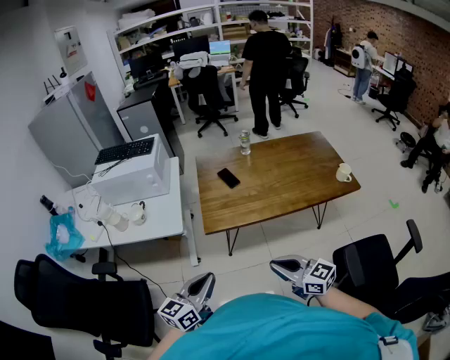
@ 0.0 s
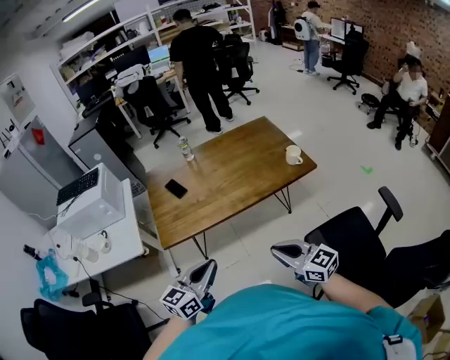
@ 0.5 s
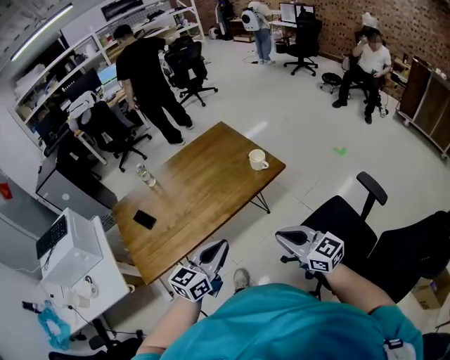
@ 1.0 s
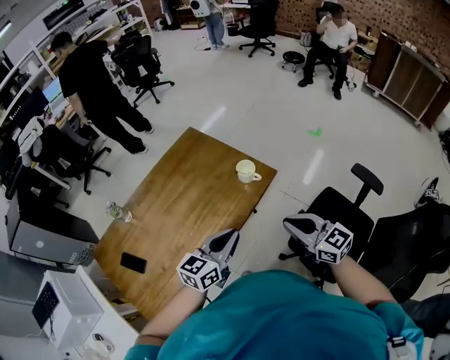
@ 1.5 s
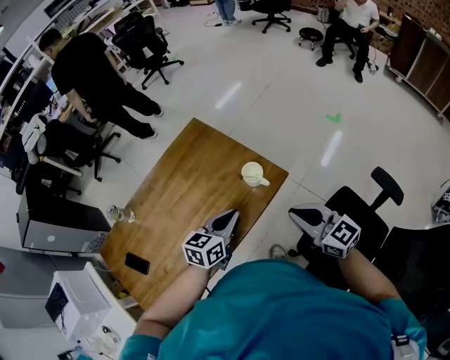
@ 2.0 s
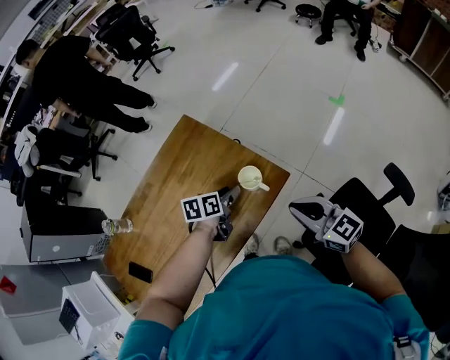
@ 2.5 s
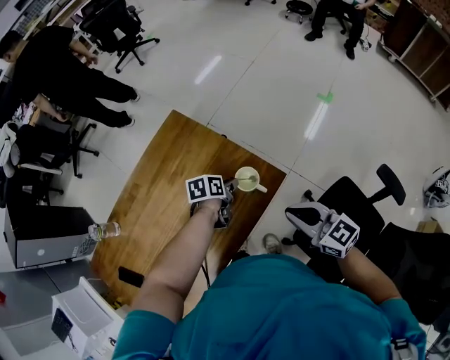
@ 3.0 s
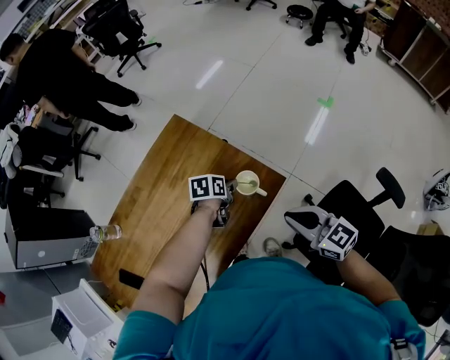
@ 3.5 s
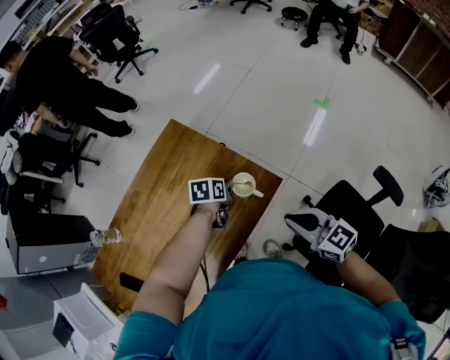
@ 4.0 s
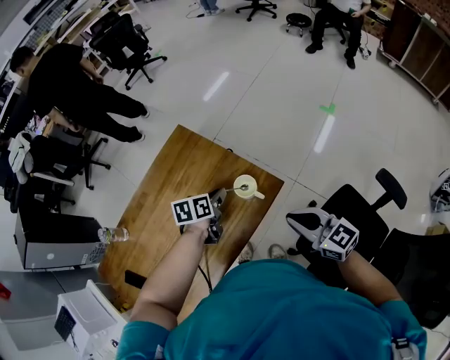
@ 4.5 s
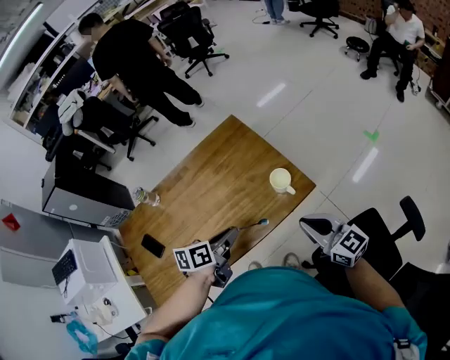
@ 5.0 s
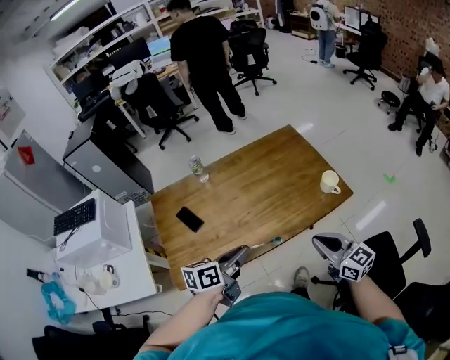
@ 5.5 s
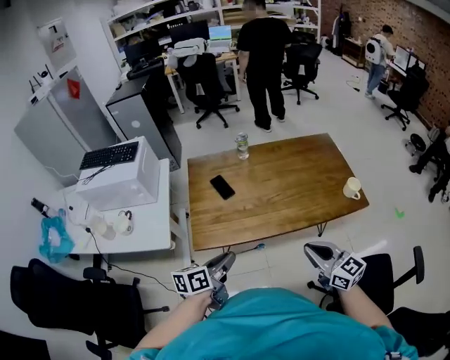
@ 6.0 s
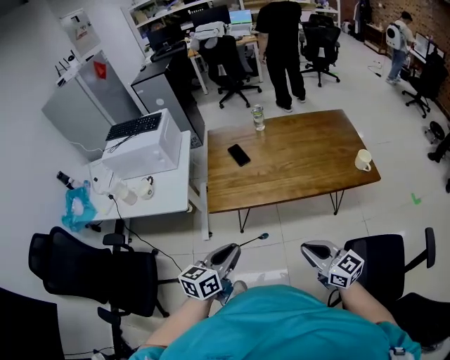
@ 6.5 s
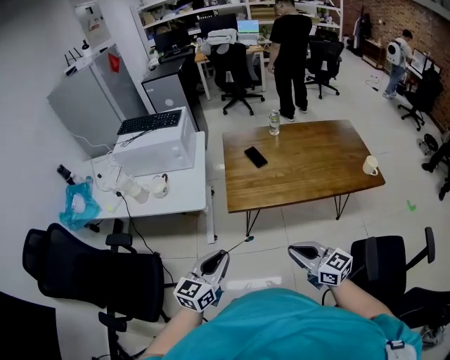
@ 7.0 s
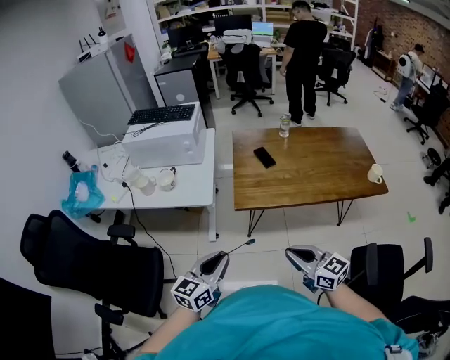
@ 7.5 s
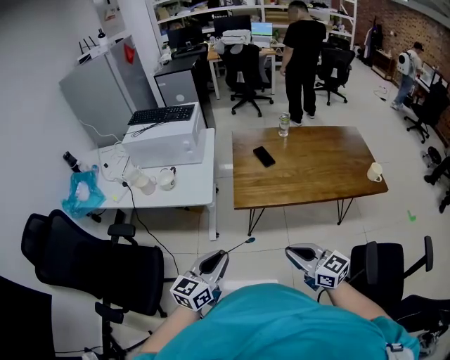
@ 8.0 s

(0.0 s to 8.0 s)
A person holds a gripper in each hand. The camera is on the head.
0.0 s - 2.0 s: The two grippers travel together, about 70 cm. The left gripper turns by some 40 degrees, while the right gripper changes its angle by about 40 degrees.
2.0 s - 4.0 s: The left gripper heads forward and downward, covering roughly 30 cm, tips its fingers downward by roughly 30 degrees, and opens and closes again. Meanwhile the right gripper heads forward, covering approximately 10 cm.
4.0 s - 6.0 s: The two grippers travel together, about 60 cm. The left gripper points its fingers approximately 40 degrees further upward. Meanwhile the right gripper changes its angle by approximately 30 degrees.
6.0 s - 8.0 s: The right gripper heads to the left and backward, covering approximately 30 cm; the left gripper heads backward and to the left, covering some 30 cm, and rotates about 40 degrees.

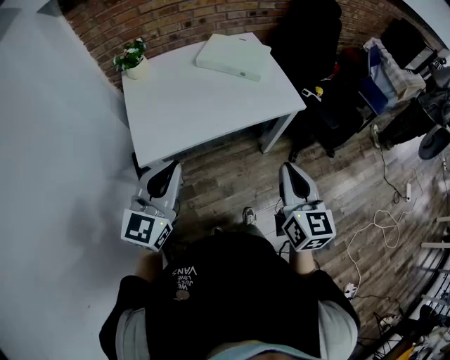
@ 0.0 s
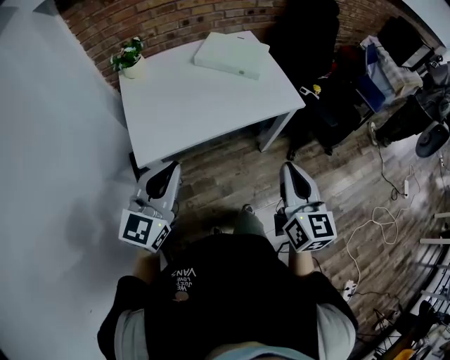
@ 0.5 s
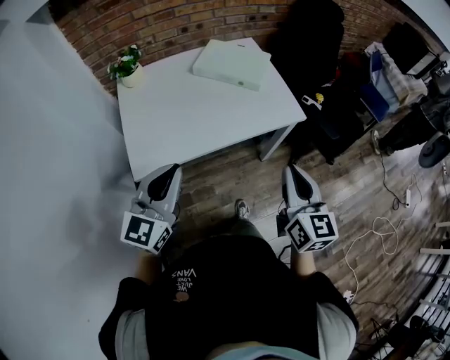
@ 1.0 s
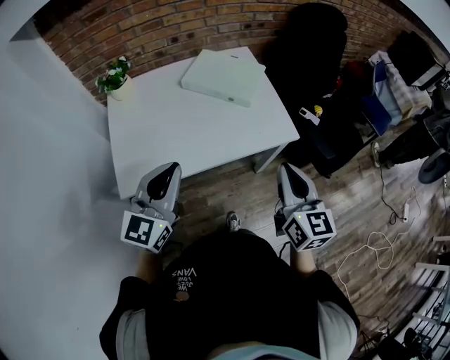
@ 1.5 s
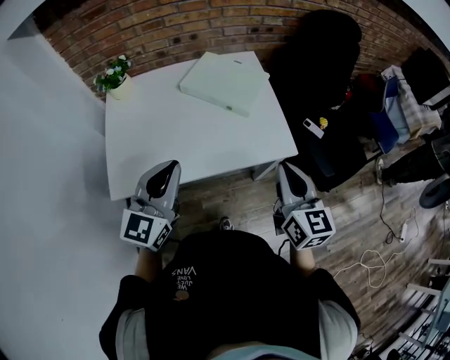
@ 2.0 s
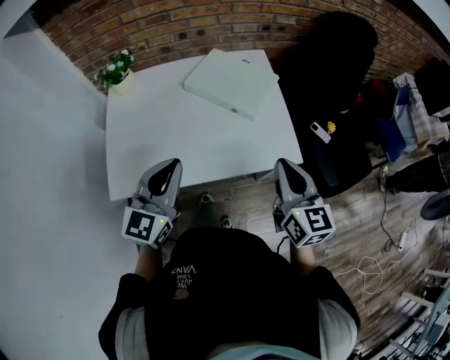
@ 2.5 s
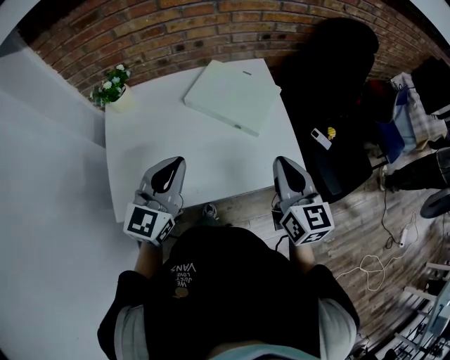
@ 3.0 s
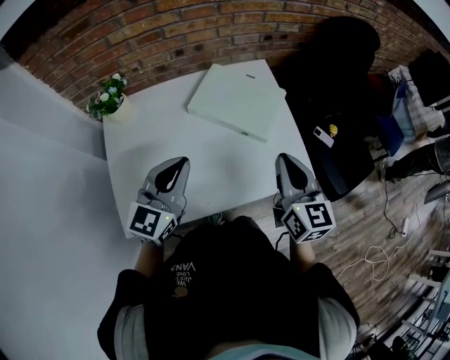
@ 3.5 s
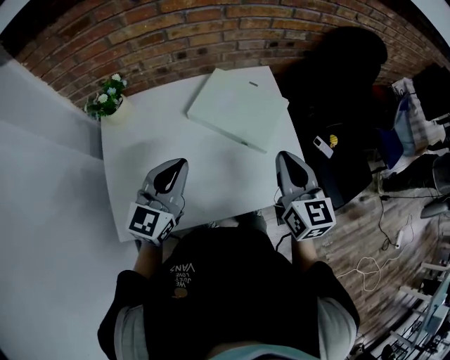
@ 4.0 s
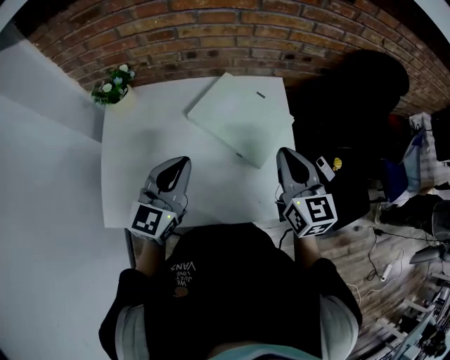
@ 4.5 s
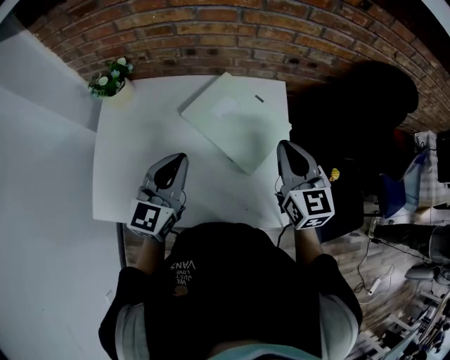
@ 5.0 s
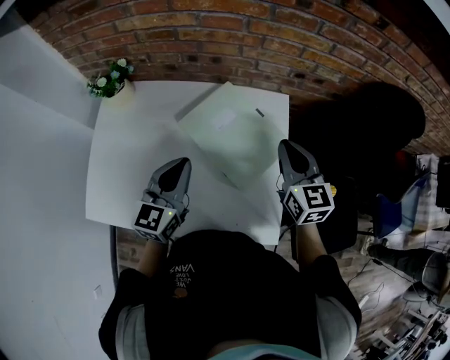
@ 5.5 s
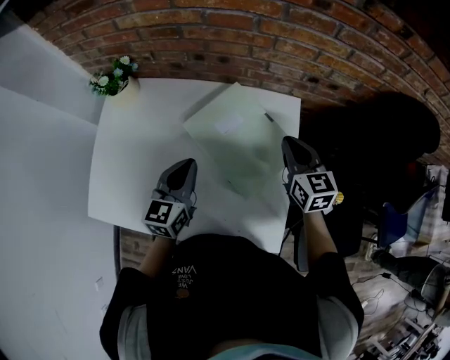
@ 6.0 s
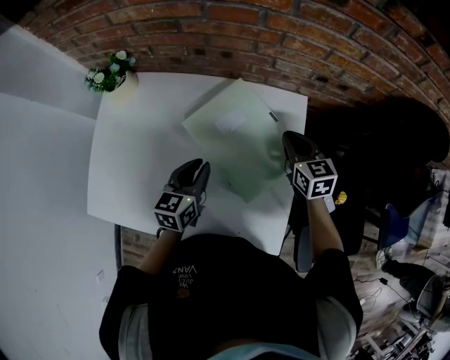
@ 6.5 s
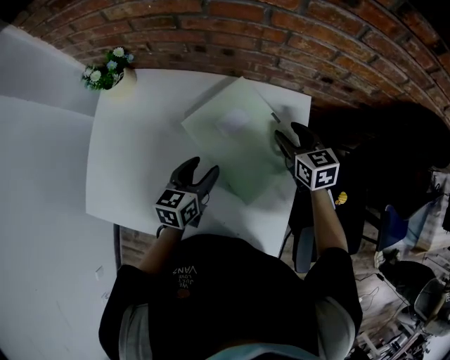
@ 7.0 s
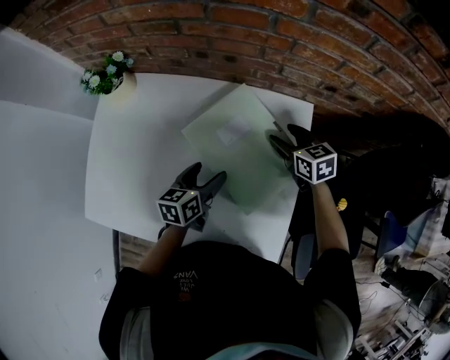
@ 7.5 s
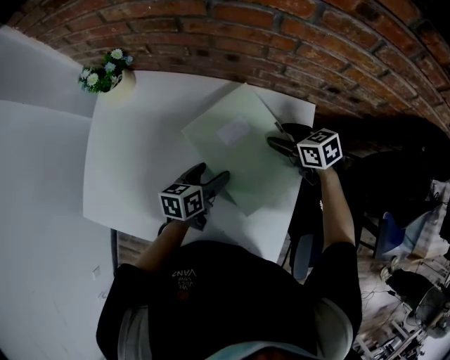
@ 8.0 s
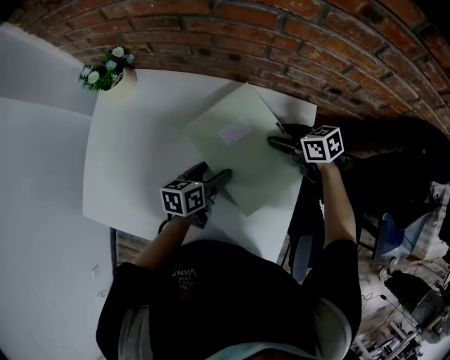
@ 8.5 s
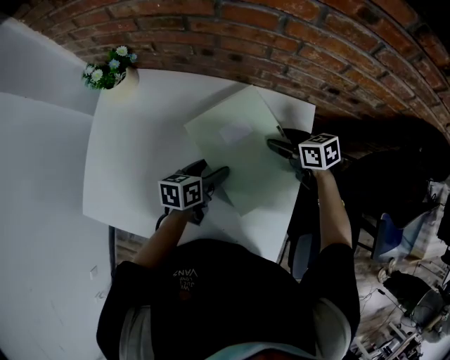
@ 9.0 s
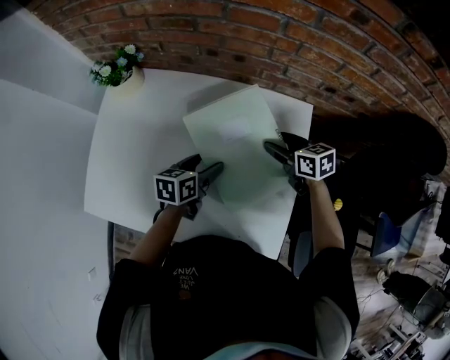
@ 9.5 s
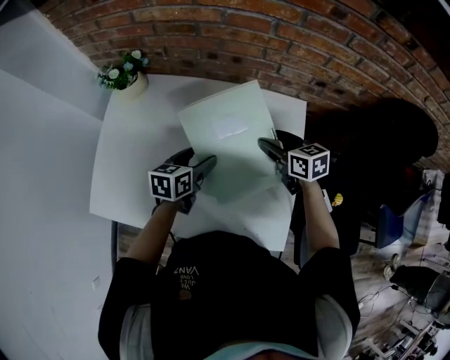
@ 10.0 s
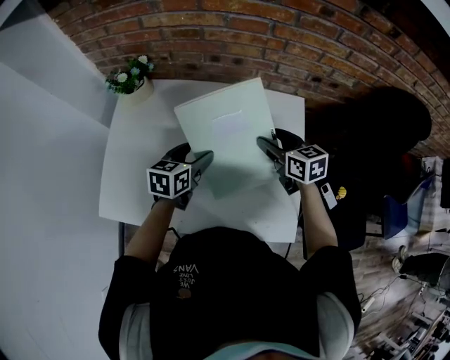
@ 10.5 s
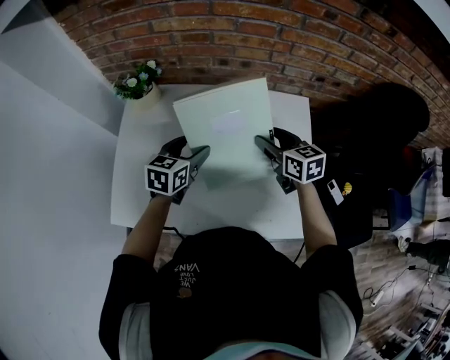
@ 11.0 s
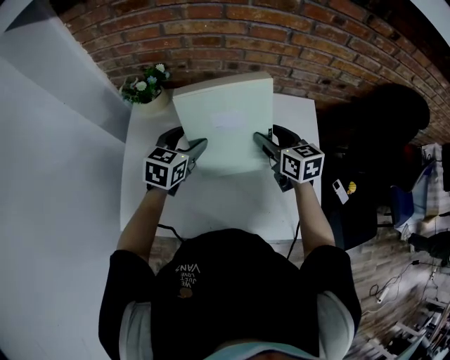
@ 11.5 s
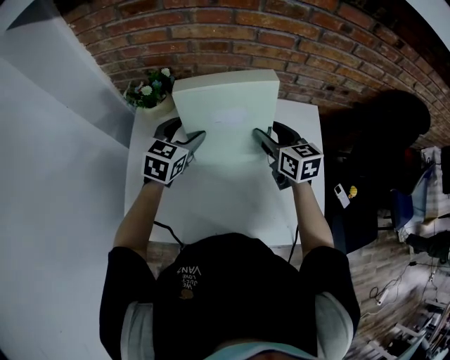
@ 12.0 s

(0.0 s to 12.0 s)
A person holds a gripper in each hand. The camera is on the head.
0.0 s - 2.0 s: The right gripper heads forward, covering some 20 cm; the left gripper shifts some 20 cm forward and to the right.
2.0 s - 4.0 s: The grippers both shift forward by about 20 cm.
4.0 s - 6.0 s: The right gripper shifts by some 25 cm, and changes its angle by about 30 degrees; the left gripper ends up approximately 15 cm from where it was, and swivels some 30 degrees.
6.0 s - 8.0 s: The left gripper moves downward, about 15 cm, rotates some 40 degrees, and opens up. The right gripper goes about 15 cm downward and forward, changes its angle by some 40 degrees, and opens up.
8.0 s - 10.0 s: The left gripper heads upward and to the left, covering about 10 cm; the right gripper travels upward and backward by approximately 10 cm.
10.0 s - 12.0 s: The right gripper heads to the left and upward, covering some 15 cm, and swivels some 20 degrees, while the left gripper moves to the left, upward and forward, roughly 20 cm, and changes its angle by roughly 40 degrees.

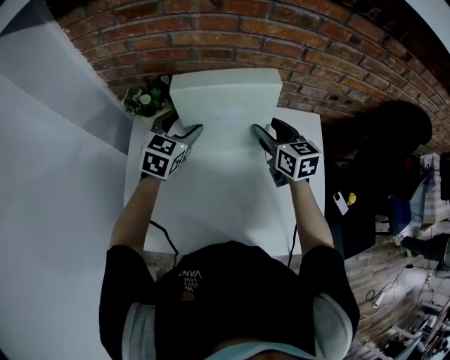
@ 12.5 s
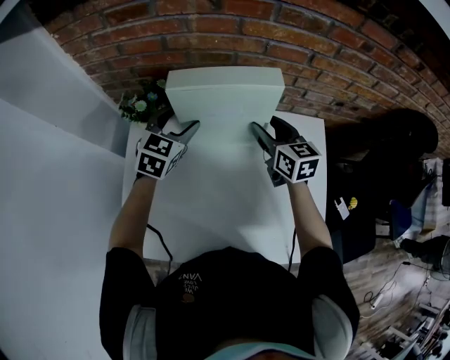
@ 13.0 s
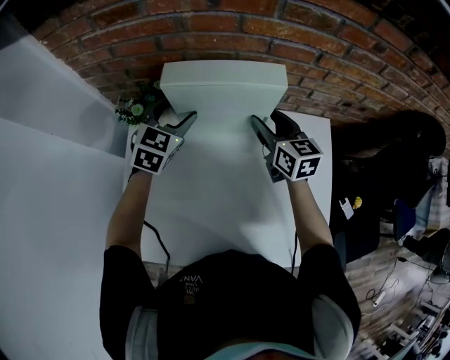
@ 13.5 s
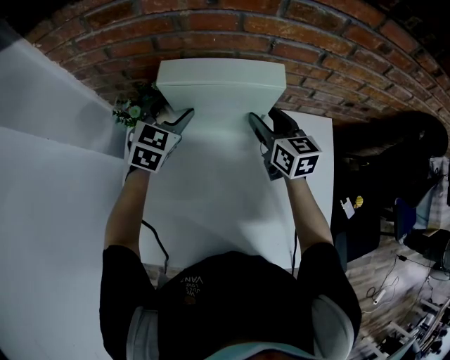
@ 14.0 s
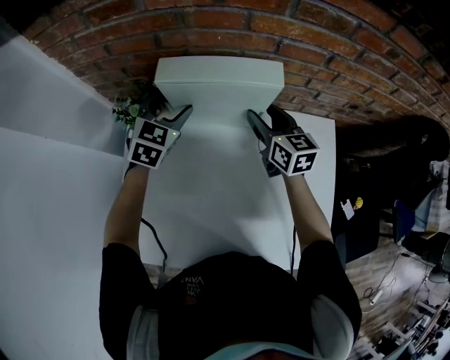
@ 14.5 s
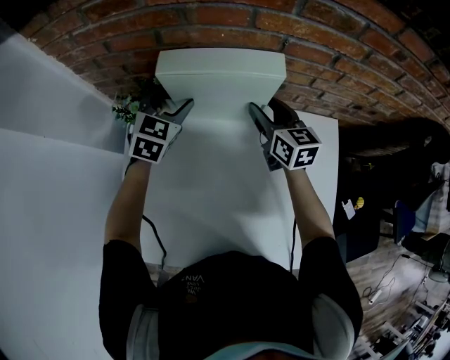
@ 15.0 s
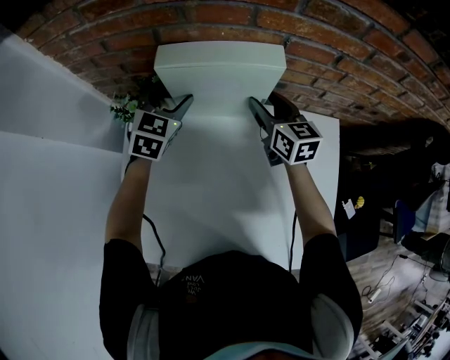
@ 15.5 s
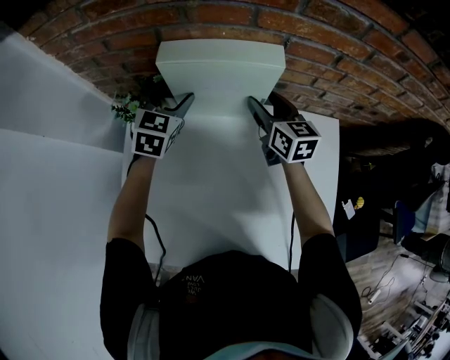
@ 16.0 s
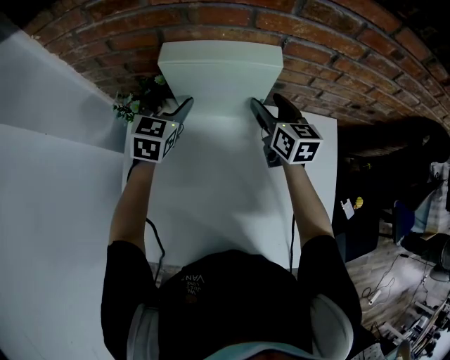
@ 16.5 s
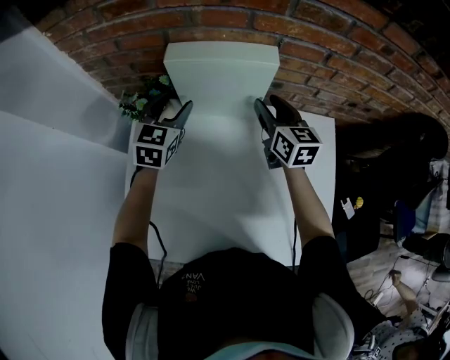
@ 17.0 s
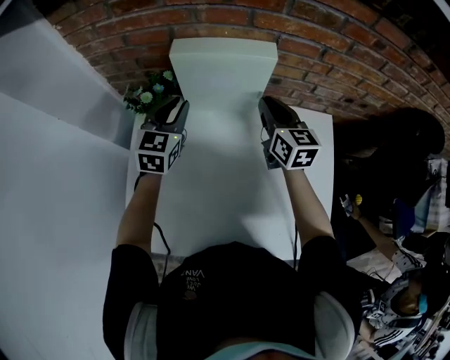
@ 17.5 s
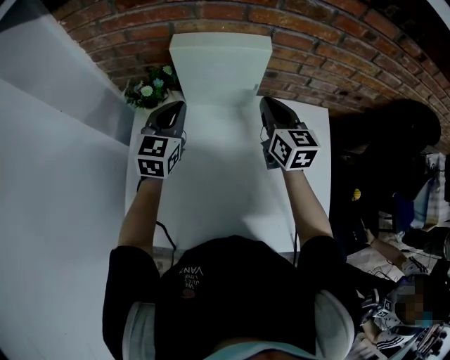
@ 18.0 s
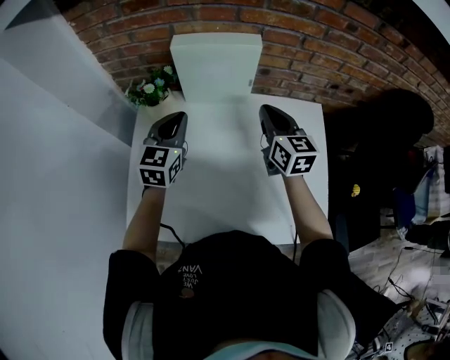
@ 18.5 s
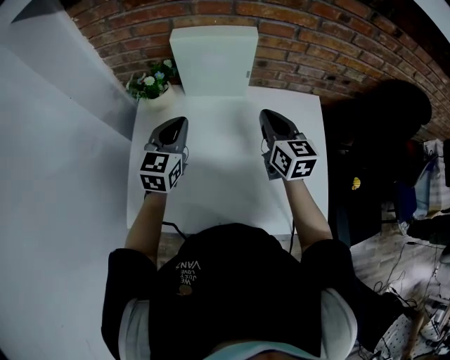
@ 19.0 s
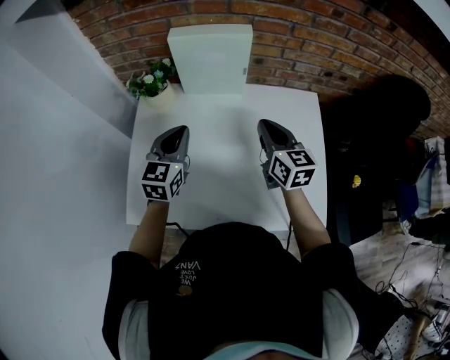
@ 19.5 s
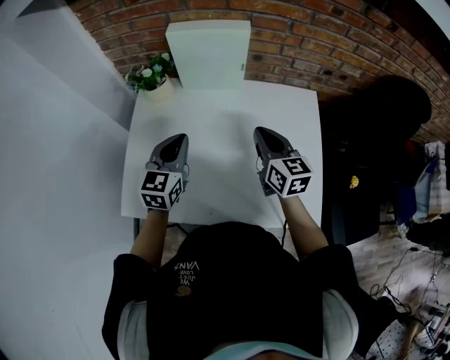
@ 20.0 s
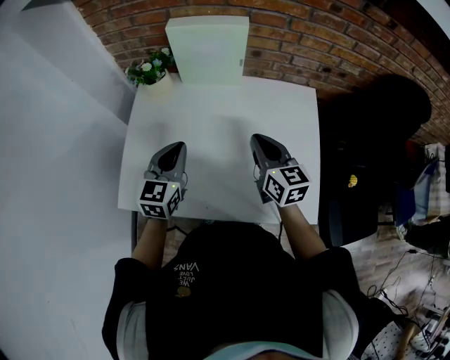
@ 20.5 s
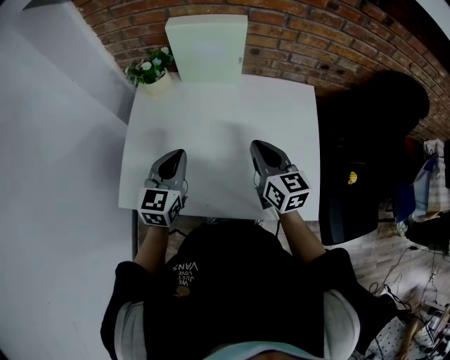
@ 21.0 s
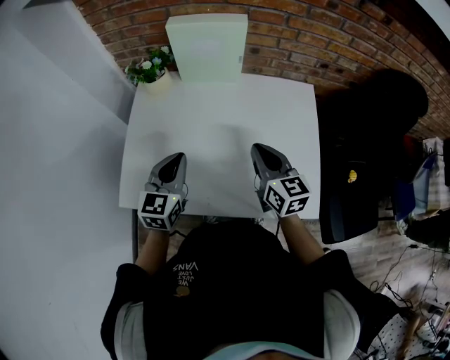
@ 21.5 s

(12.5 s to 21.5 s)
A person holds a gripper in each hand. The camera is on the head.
12.5 s - 14.5 s: Both grippers travel together forward, approximately 10 cm.
14.5 s - 17.0 s: The grippers make only small movements.
17.0 s - 19.5 s: The two grippers go approximately 20 cm backward. The left gripper closes; the right gripper closes.
19.5 s - 21.5 s: The grippers both shift backward by some 10 cm.
